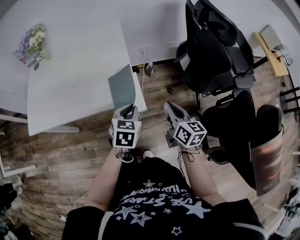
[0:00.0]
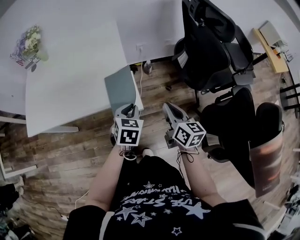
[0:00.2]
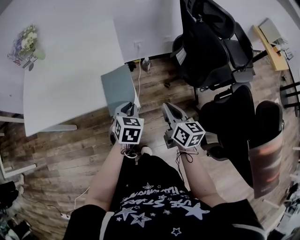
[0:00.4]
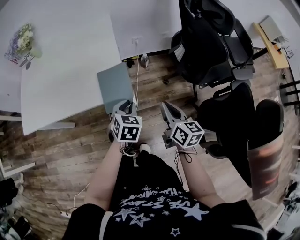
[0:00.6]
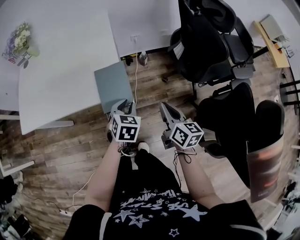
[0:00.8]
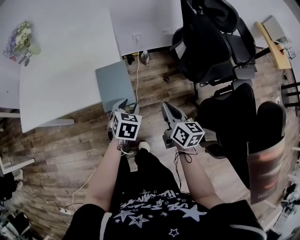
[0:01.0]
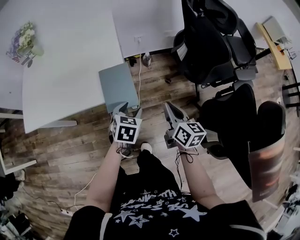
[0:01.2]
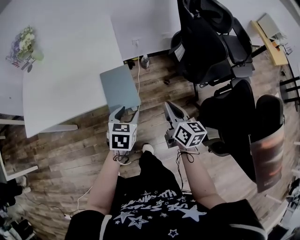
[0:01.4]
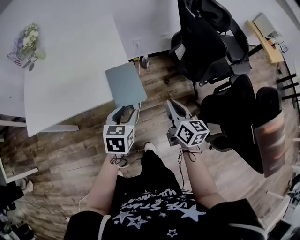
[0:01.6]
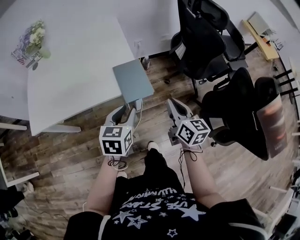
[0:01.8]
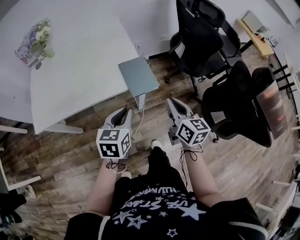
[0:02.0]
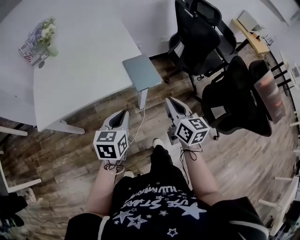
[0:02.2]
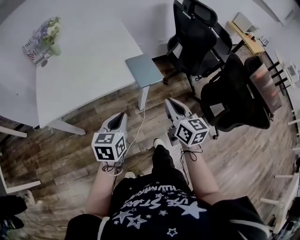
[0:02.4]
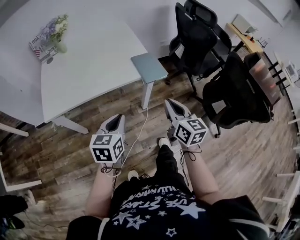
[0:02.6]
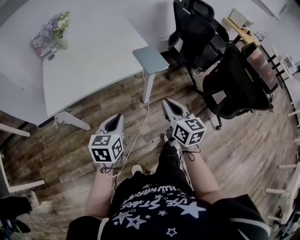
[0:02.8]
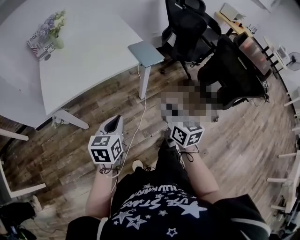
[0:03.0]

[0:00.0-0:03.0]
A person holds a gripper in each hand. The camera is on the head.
0:00.0 to 0:01.6: The left gripper moves backward, about 5 cm, reaches approximately 5 cm downward, then returns, and opens its fingers.
0:01.6 to 0:03.0: Both grippers move backward and to the left, some 40 cm. The left gripper closes.

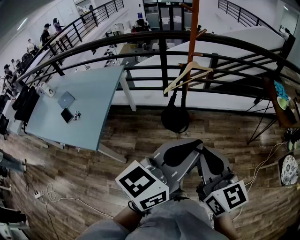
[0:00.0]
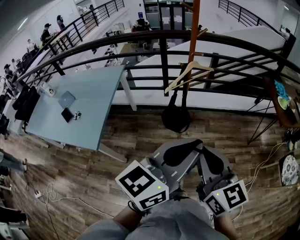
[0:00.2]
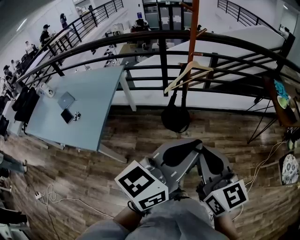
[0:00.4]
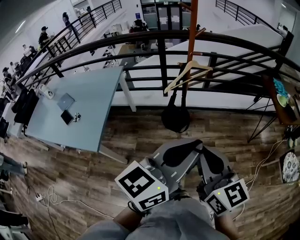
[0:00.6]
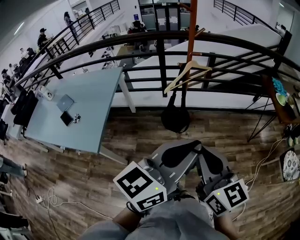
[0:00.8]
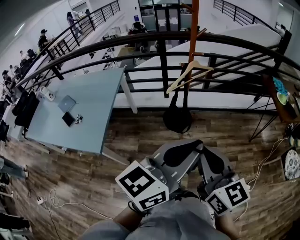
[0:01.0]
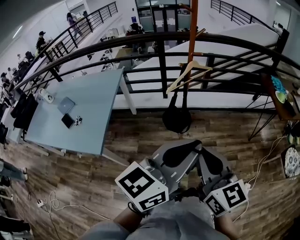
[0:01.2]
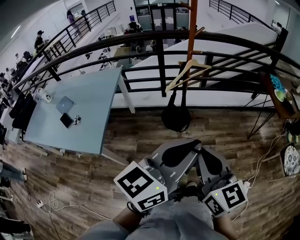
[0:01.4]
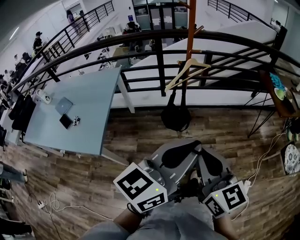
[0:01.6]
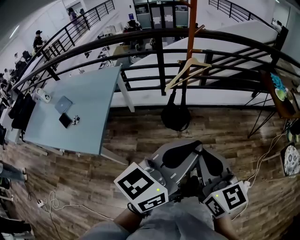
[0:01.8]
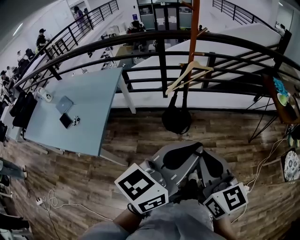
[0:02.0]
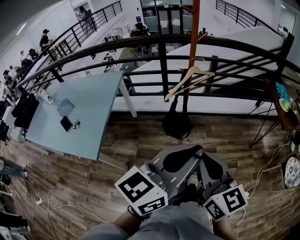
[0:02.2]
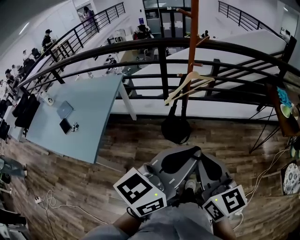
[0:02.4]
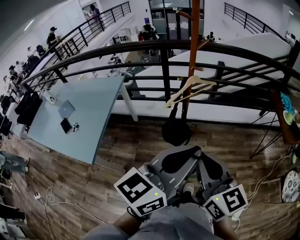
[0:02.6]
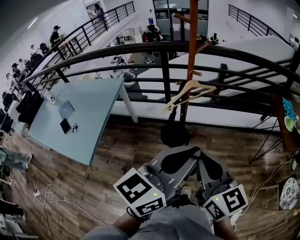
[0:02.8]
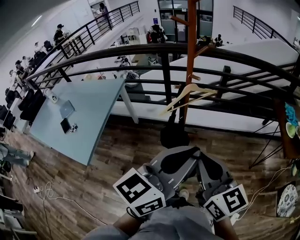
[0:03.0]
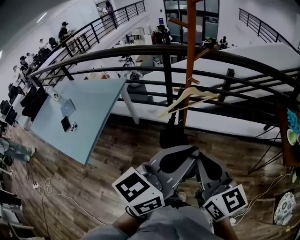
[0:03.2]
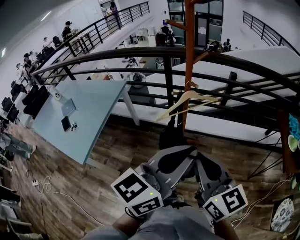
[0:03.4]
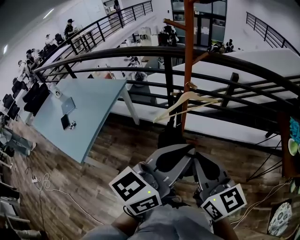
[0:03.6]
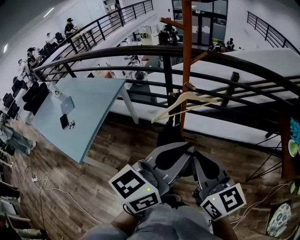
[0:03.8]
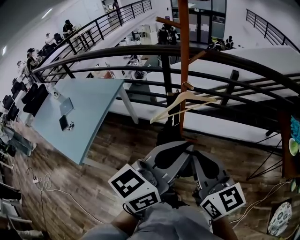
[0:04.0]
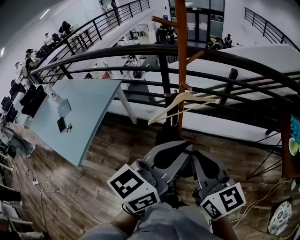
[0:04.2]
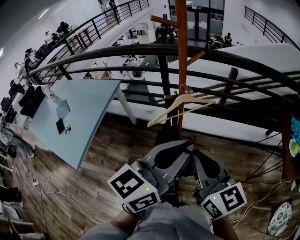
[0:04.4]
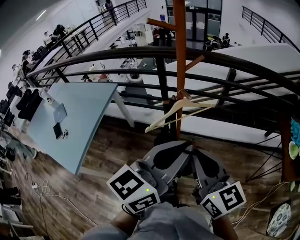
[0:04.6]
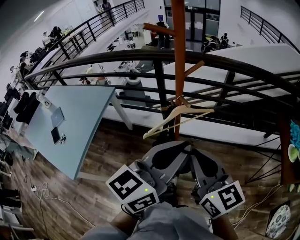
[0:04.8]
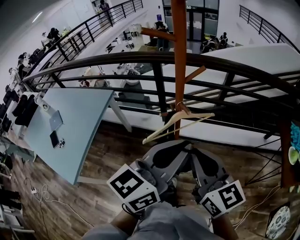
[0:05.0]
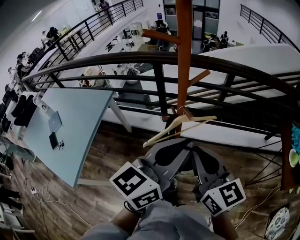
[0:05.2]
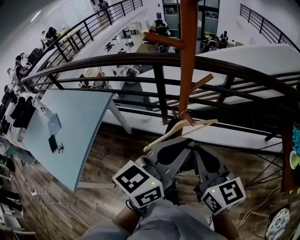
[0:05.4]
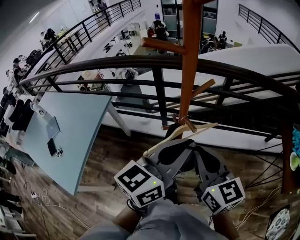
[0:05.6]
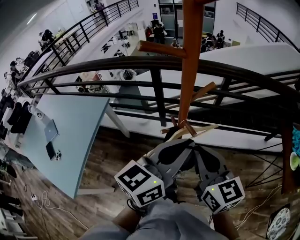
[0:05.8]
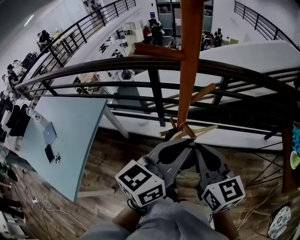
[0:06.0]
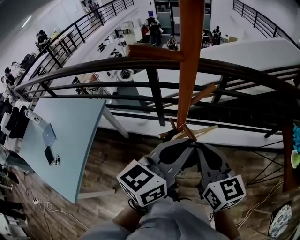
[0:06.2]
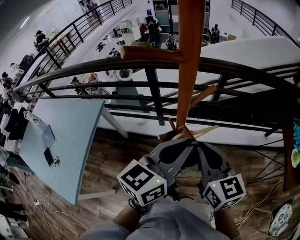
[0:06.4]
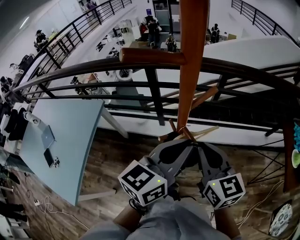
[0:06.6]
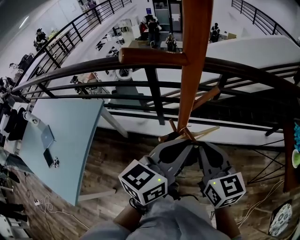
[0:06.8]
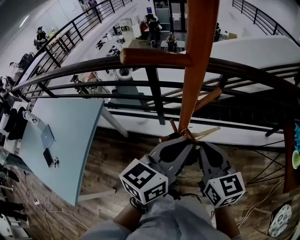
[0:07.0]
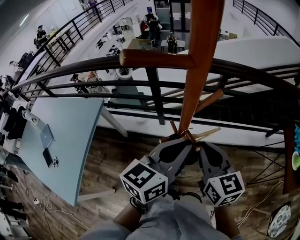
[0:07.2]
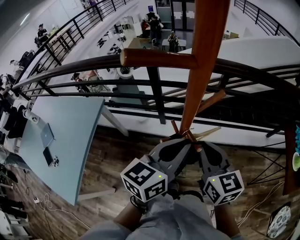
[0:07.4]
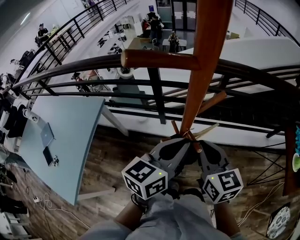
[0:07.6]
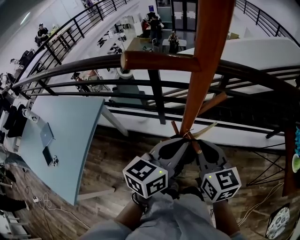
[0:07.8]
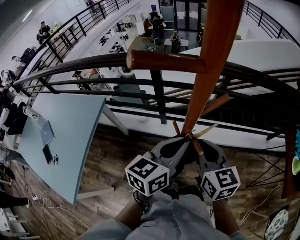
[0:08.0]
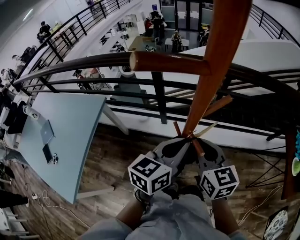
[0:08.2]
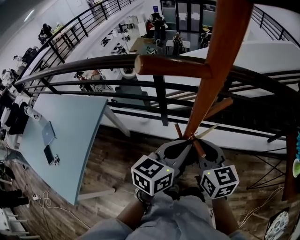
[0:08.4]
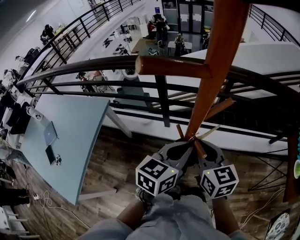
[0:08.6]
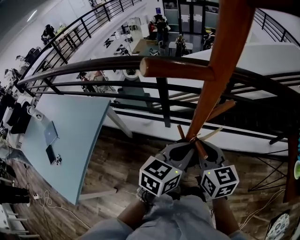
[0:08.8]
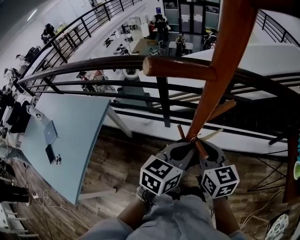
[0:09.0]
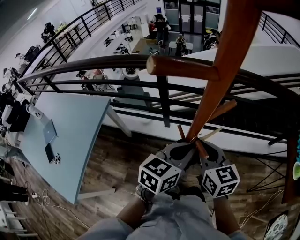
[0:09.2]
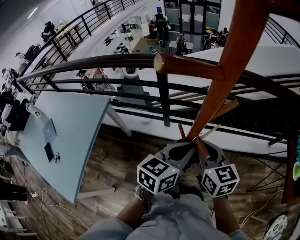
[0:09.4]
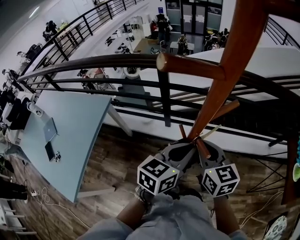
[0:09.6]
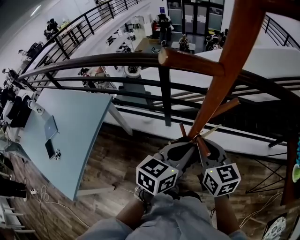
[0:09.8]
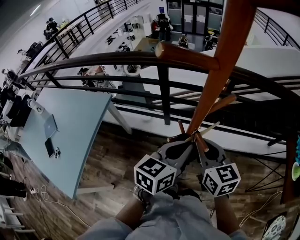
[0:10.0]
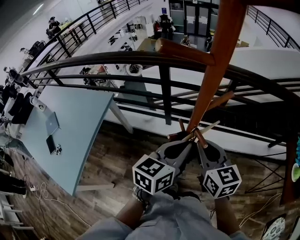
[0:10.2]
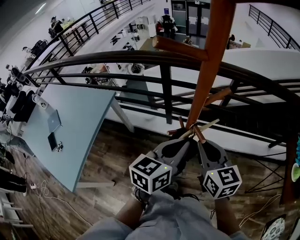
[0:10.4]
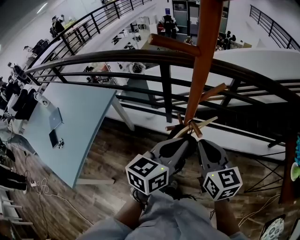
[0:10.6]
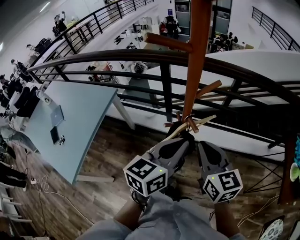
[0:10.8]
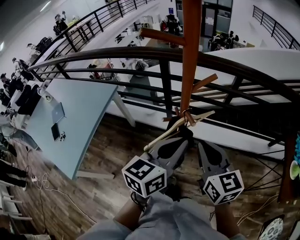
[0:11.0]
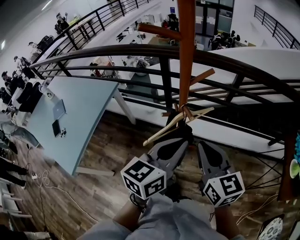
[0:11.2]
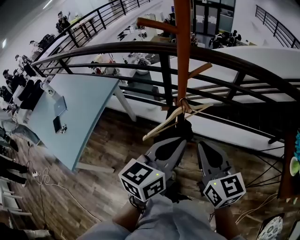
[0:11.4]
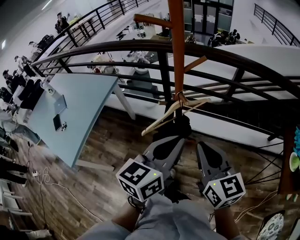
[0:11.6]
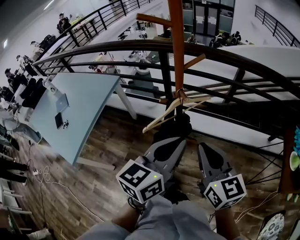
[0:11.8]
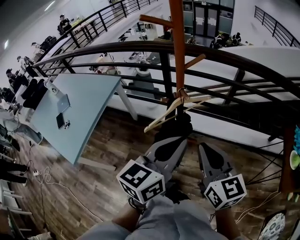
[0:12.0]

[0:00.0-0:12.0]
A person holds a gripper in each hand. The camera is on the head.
0:00.0 to 0:01.6: The grippers make only small movements.
0:01.6 to 0:03.0: Both grippers travel together forward and to the right, roughly 20 cm.
0:03.0 to 0:04.4: The left gripper travels forward by about 10 cm. The right gripper travels forward and to the right by roughly 15 cm.
0:04.4 to 0:06.0: The two grippers go roughly 20 cm forward.
0:06.0 to 0:07.6: The left gripper is displaced downward and forward by some 10 cm. Meanwhile the right gripper shifts about 10 cm forward and downward.
0:07.6 to 0:09.0: The left gripper is displaced downward by some 5 cm.
0:09.0 to 0:10.4: The left gripper moves some 5 cm; the right gripper moves some 5 cm.
0:10.4 to 0:12.0: The left gripper heads backward and upward, covering about 15 cm, while the right gripper is displaced backward by approximately 15 cm.

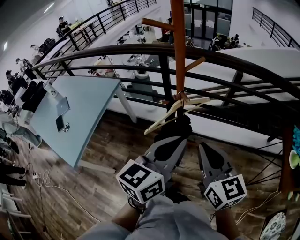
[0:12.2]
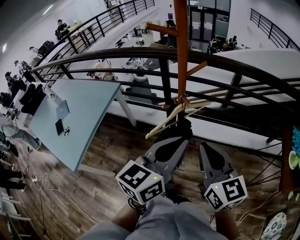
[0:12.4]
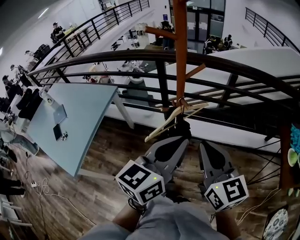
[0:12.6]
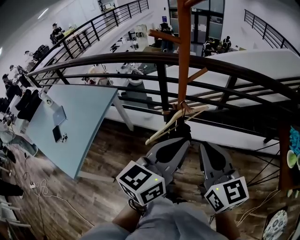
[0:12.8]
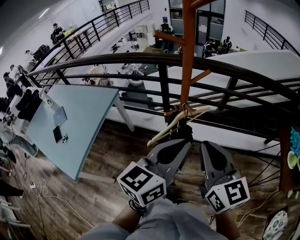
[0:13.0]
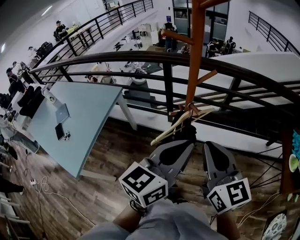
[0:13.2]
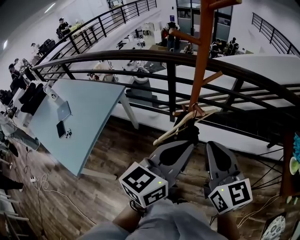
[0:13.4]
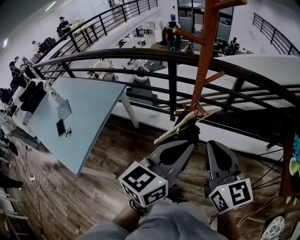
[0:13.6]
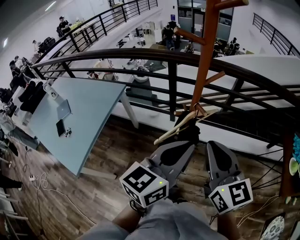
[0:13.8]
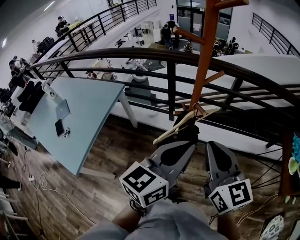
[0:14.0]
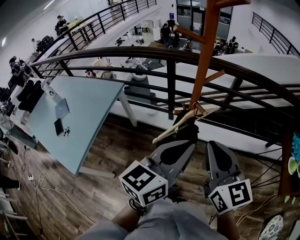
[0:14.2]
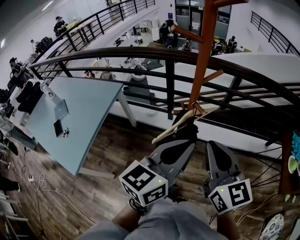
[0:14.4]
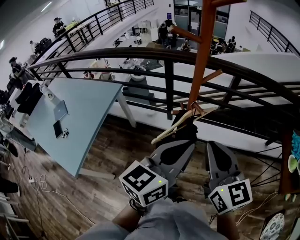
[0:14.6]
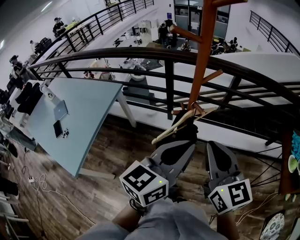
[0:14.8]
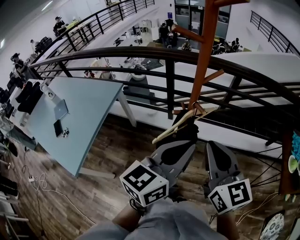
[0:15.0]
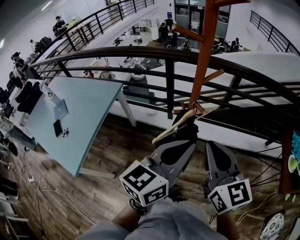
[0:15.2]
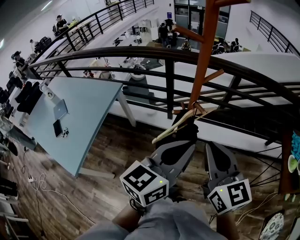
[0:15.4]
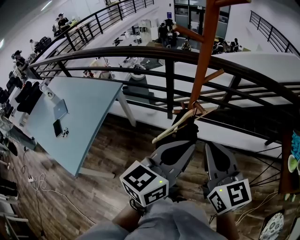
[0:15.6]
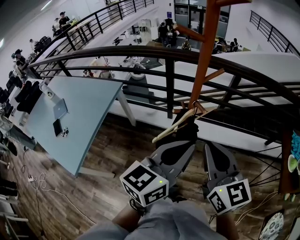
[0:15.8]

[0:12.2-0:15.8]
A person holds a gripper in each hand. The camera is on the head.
0:12.2 to 0:14.0: The right gripper moves to the left, roughly 5 cm. The left gripper ends up roughly 5 cm from where it was.
0:14.0 to 0:15.8: Both grippers stay put.

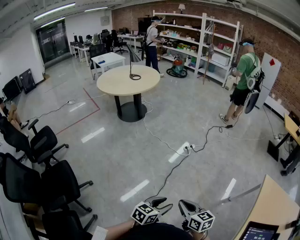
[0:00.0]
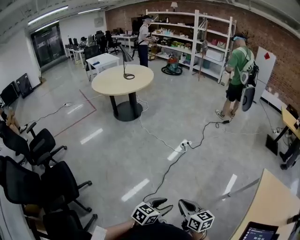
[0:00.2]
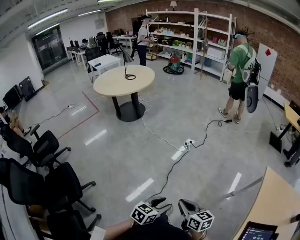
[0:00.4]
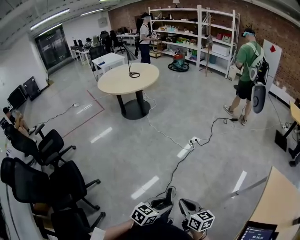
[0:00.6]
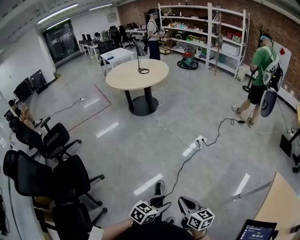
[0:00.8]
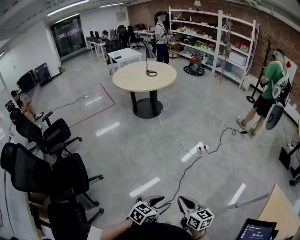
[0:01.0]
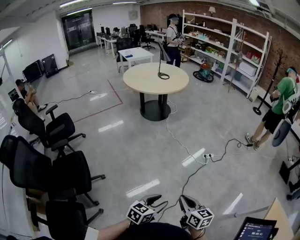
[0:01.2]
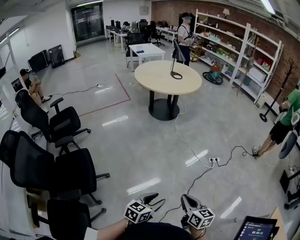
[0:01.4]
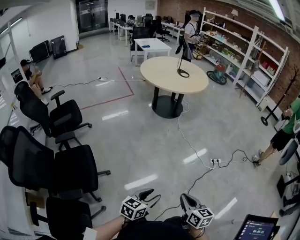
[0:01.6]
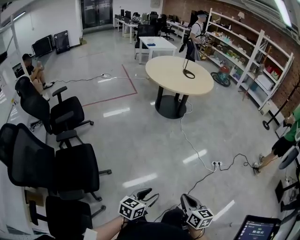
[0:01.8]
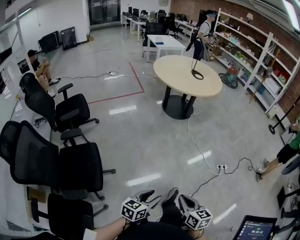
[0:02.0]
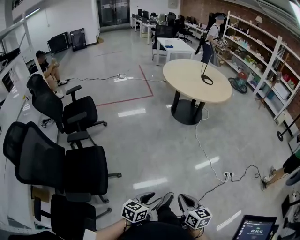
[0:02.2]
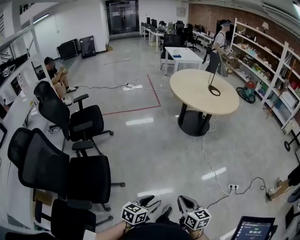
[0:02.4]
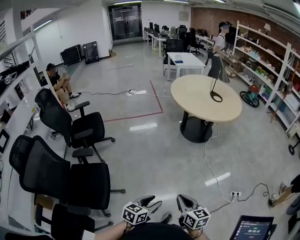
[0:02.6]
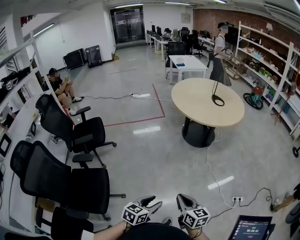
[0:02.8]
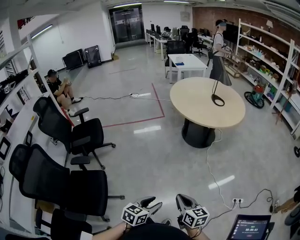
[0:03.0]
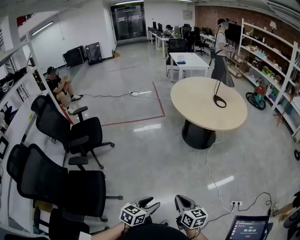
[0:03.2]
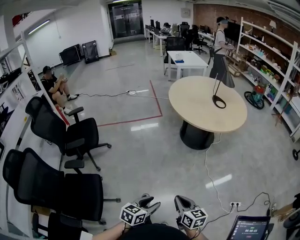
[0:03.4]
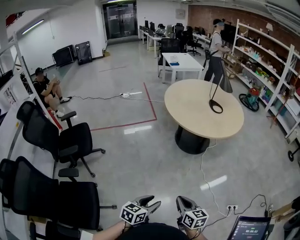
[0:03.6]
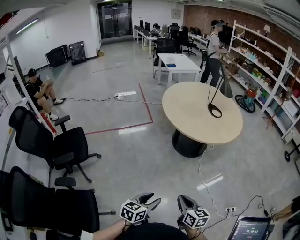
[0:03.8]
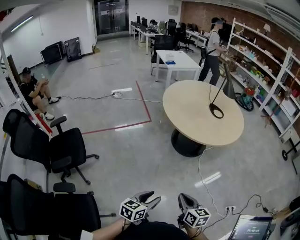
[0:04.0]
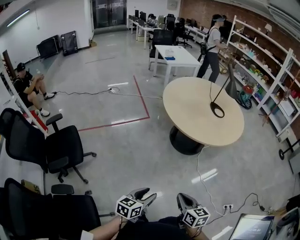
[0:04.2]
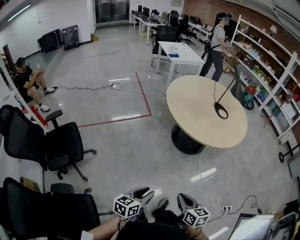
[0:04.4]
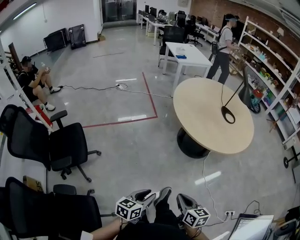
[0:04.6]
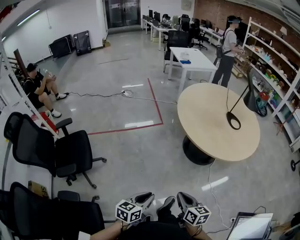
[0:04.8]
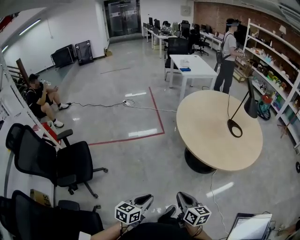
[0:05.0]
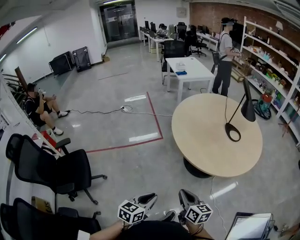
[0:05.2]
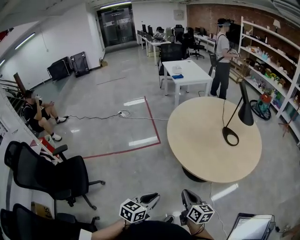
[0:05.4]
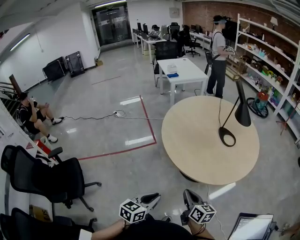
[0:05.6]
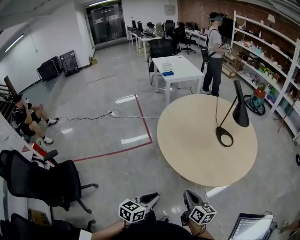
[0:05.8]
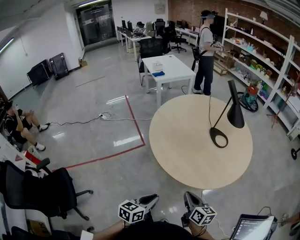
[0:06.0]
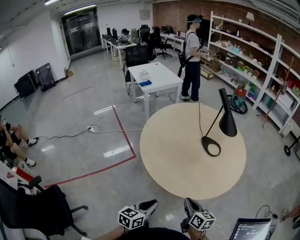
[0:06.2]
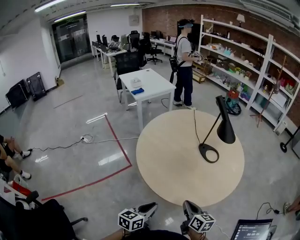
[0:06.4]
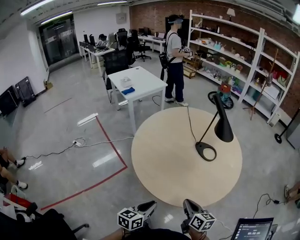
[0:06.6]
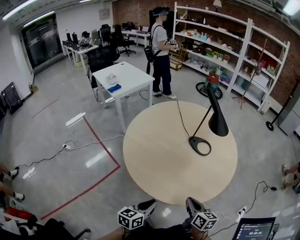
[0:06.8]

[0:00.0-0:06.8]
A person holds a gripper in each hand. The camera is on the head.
0:00.0 to 0:01.4: The left gripper goes some 20 cm to the left, and swivels roughly 20 degrees. Meanwhile the right gripper travels to the left and forward by about 20 cm.
0:01.4 to 0:02.8: Both grippers move forward and to the left, roughly 30 cm. The right gripper swivels about 20 degrees.
0:02.8 to 0:04.0: Both grippers move forward, some 25 cm.
0:04.0 to 0:05.4: Both grippers move forward, some 30 cm. The left gripper closes its fingers.
0:05.4 to 0:06.8: The right gripper changes place by about 20 cm, and turns by approximately 30 degrees. The left gripper changes place by about 30 cm, and turns by some 30 degrees.
